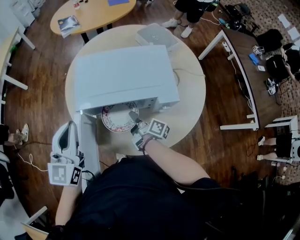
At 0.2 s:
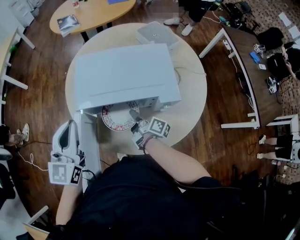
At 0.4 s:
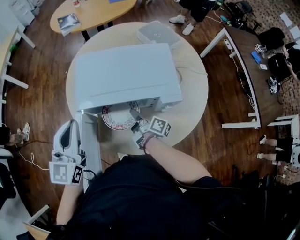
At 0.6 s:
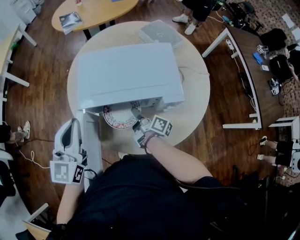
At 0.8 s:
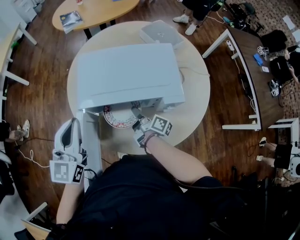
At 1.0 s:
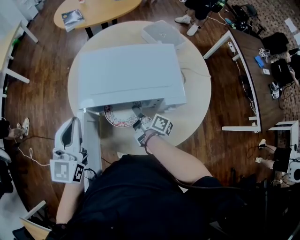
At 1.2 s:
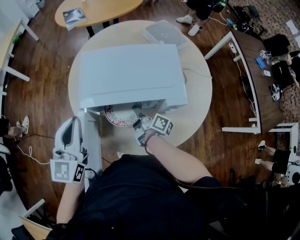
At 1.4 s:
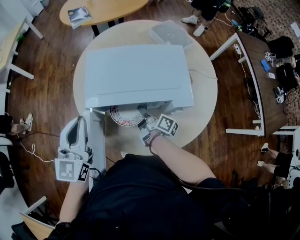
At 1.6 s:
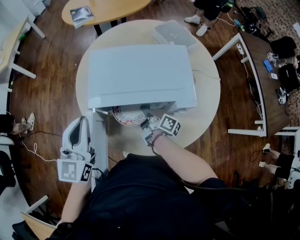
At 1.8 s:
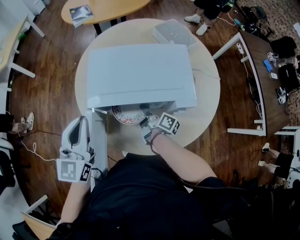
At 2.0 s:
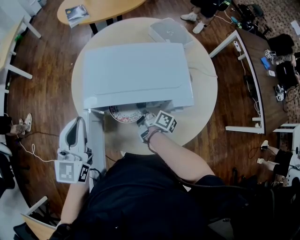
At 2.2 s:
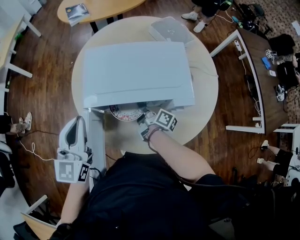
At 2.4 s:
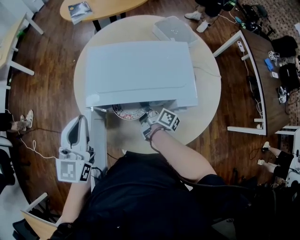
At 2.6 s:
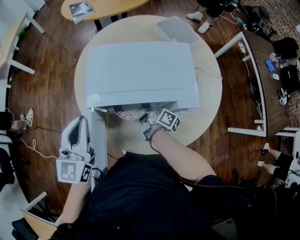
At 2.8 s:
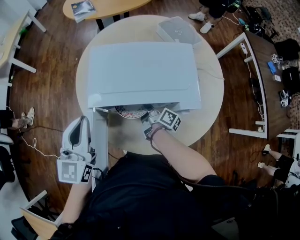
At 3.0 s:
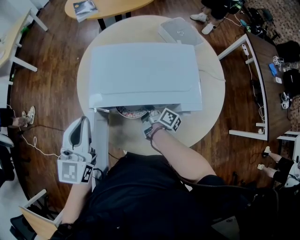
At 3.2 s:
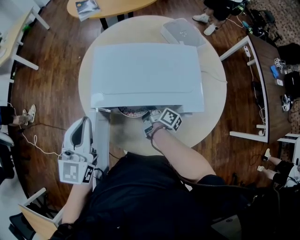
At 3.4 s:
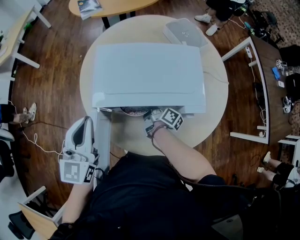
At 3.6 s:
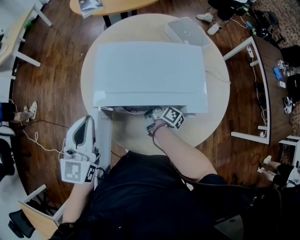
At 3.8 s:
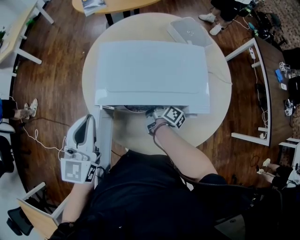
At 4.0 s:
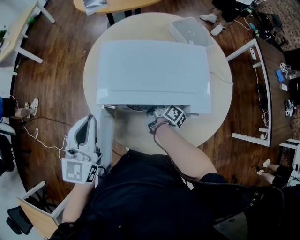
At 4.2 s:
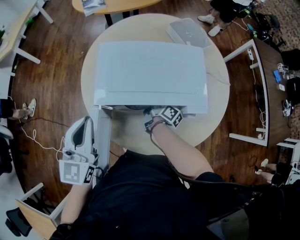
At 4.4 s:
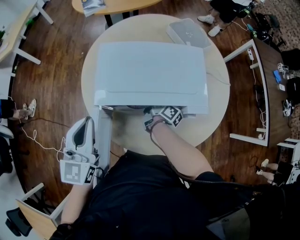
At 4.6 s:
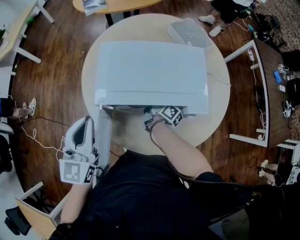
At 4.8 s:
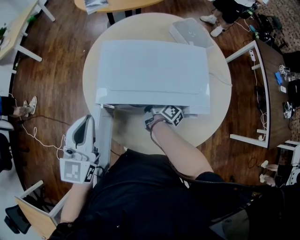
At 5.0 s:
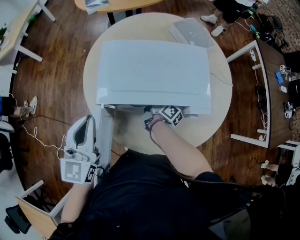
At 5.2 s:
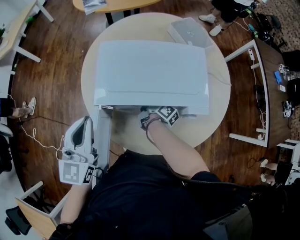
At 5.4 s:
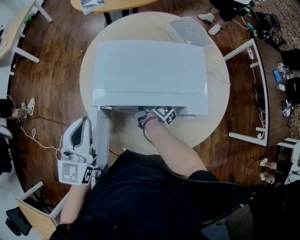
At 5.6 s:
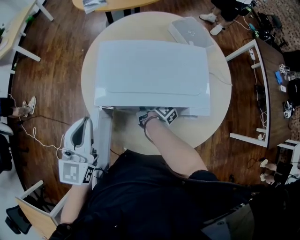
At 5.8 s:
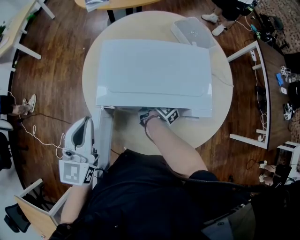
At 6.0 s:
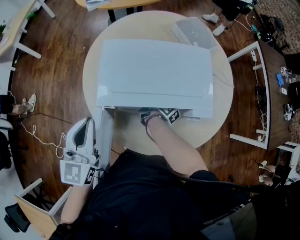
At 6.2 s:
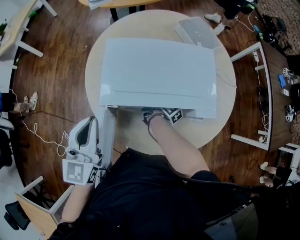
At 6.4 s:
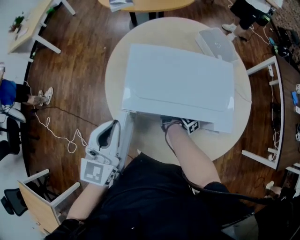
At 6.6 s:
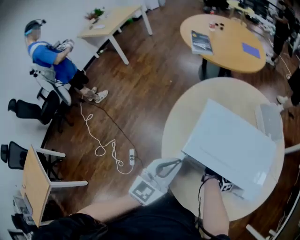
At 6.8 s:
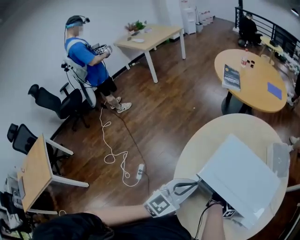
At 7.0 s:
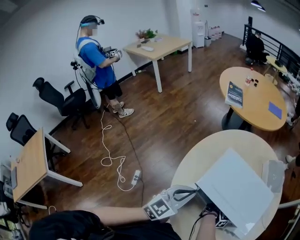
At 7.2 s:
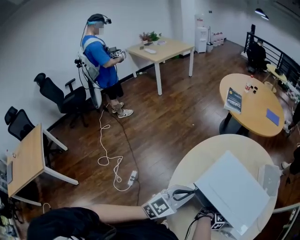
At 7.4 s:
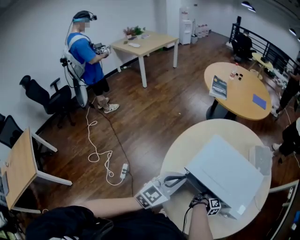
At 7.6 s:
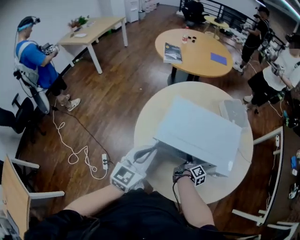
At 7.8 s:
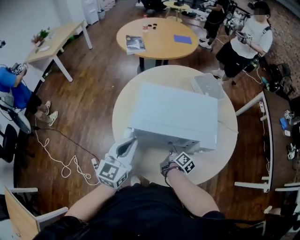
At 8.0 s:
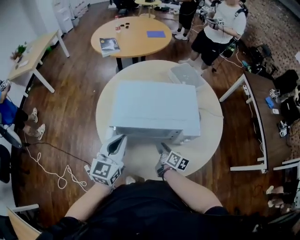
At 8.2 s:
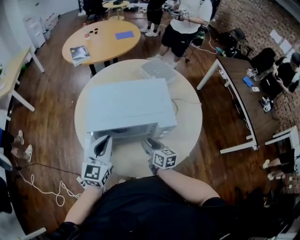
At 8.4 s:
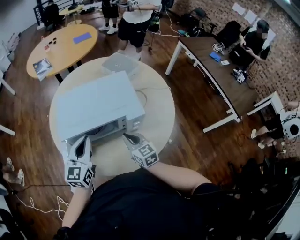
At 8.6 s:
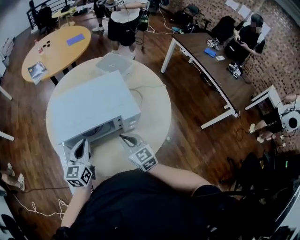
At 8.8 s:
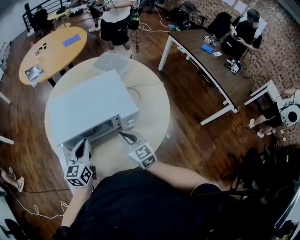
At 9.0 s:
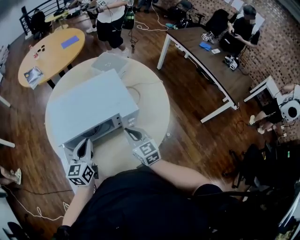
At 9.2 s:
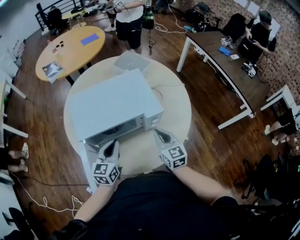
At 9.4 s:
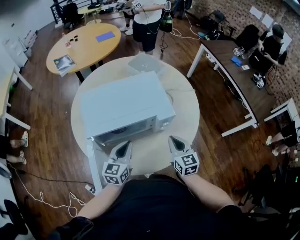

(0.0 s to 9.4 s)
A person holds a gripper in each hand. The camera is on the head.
0.0 s - 1.6 s: The grippers stay close to where they were, moving slightly.
1.6 s - 3.2 s: The grippers stay close to where they were, moving slightly.
3.2 s - 4.8 s: The grippers move only a little.
4.8 s - 6.2 s: The grippers move only a little.
6.2 s - 7.8 s: The right gripper moves backward, about 10 cm, and opens. The left gripper travels to the right by about 5 cm.
7.8 s - 9.4 s: The left gripper travels to the right and downward by some 15 cm, and rotates some 20 degrees; the right gripper goes some 20 cm to the right, upward and backward, twists approximately 60 degrees counterclockwise, seen from behind, and closes up.

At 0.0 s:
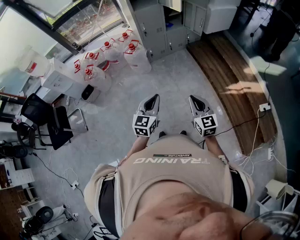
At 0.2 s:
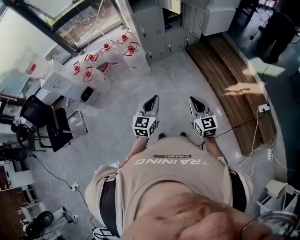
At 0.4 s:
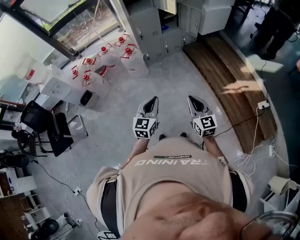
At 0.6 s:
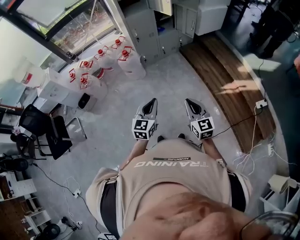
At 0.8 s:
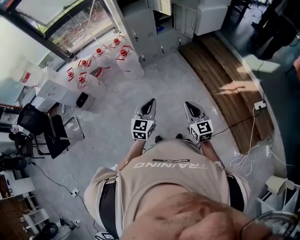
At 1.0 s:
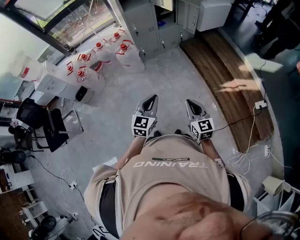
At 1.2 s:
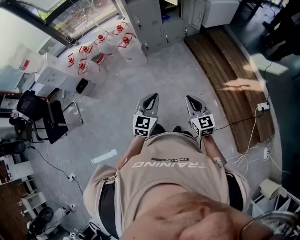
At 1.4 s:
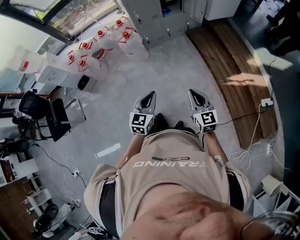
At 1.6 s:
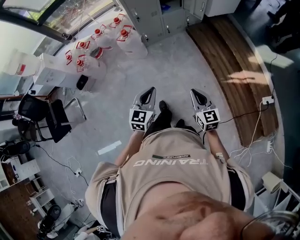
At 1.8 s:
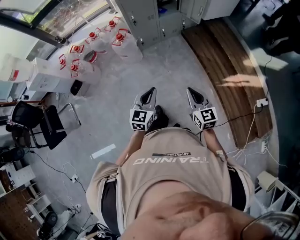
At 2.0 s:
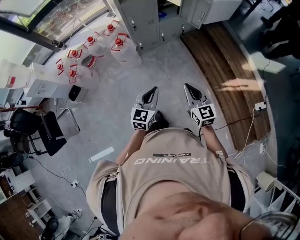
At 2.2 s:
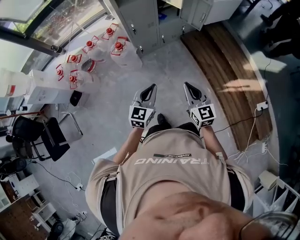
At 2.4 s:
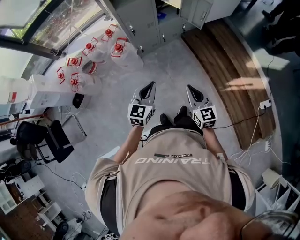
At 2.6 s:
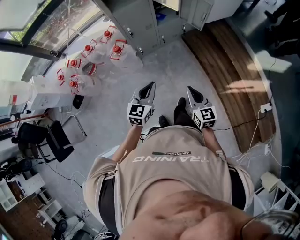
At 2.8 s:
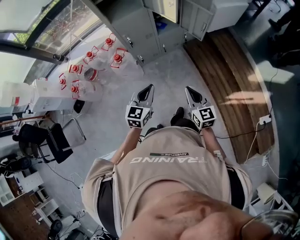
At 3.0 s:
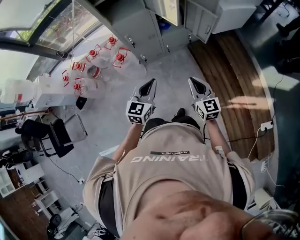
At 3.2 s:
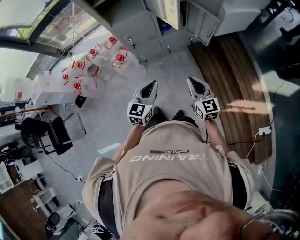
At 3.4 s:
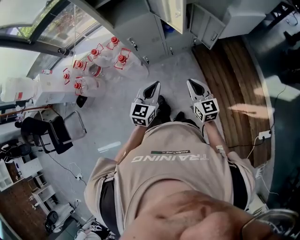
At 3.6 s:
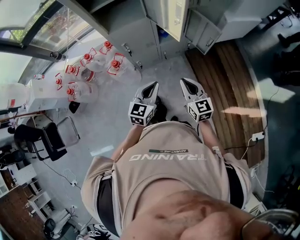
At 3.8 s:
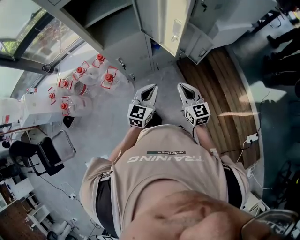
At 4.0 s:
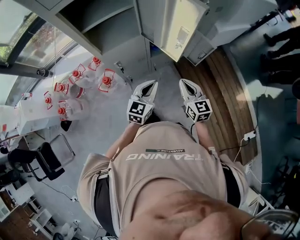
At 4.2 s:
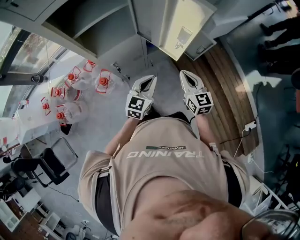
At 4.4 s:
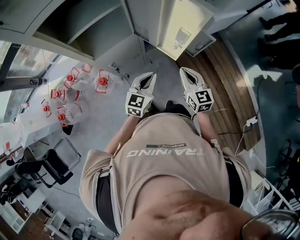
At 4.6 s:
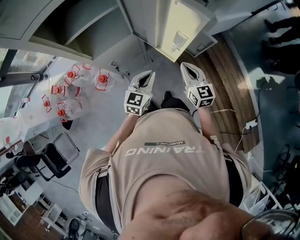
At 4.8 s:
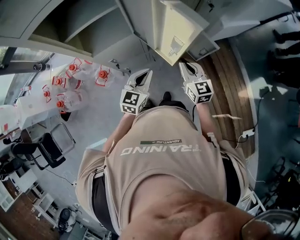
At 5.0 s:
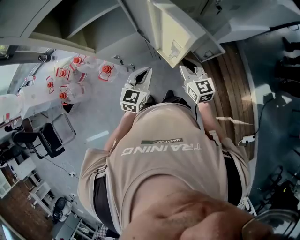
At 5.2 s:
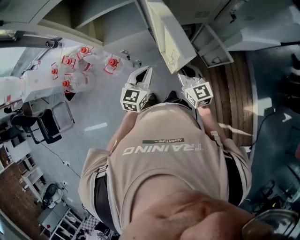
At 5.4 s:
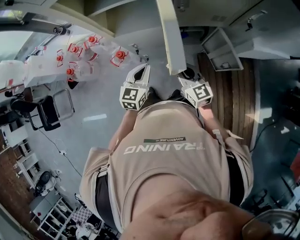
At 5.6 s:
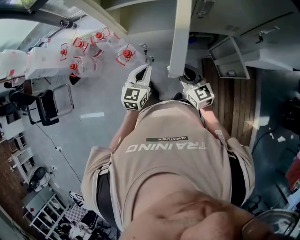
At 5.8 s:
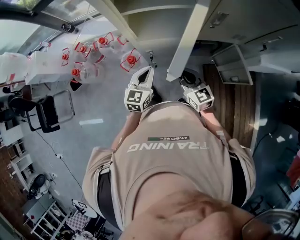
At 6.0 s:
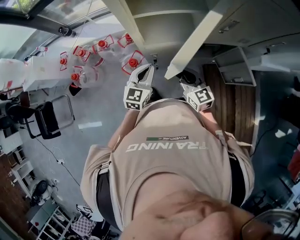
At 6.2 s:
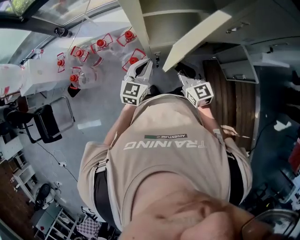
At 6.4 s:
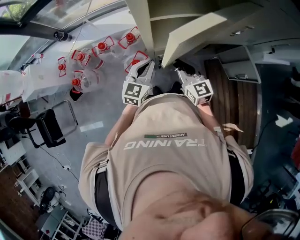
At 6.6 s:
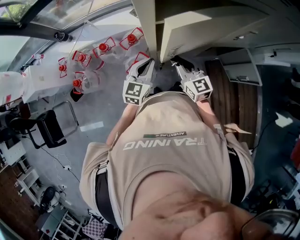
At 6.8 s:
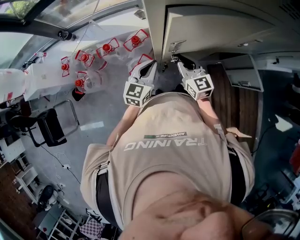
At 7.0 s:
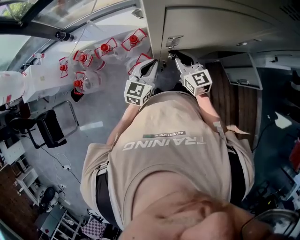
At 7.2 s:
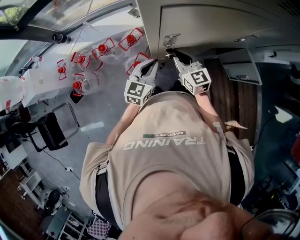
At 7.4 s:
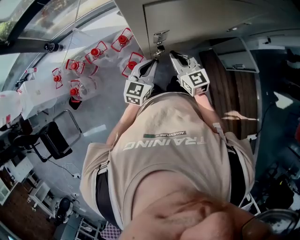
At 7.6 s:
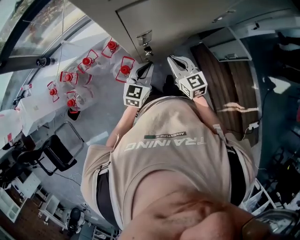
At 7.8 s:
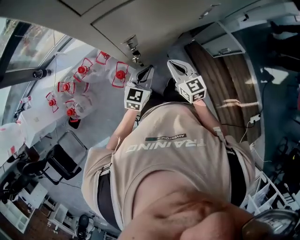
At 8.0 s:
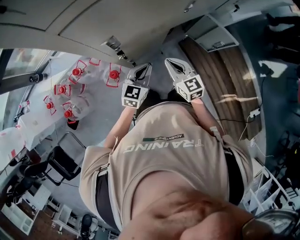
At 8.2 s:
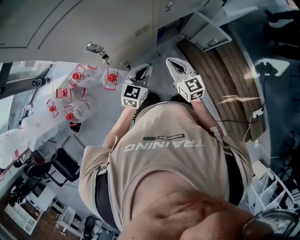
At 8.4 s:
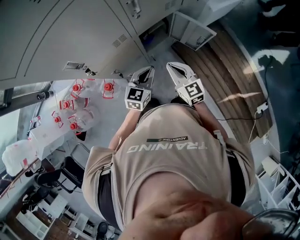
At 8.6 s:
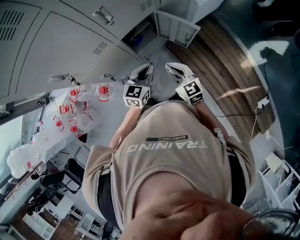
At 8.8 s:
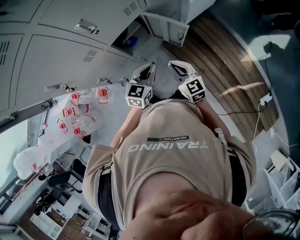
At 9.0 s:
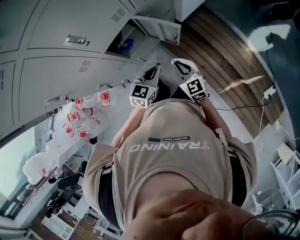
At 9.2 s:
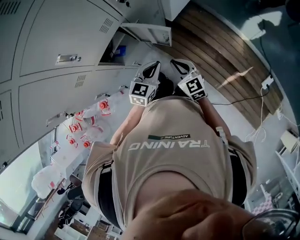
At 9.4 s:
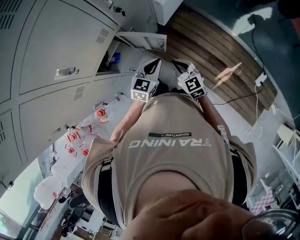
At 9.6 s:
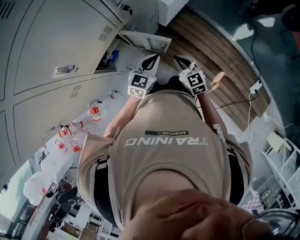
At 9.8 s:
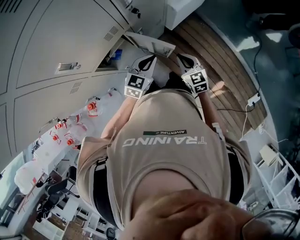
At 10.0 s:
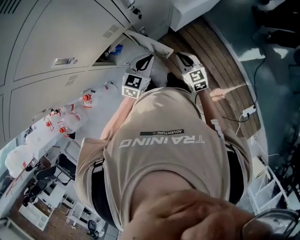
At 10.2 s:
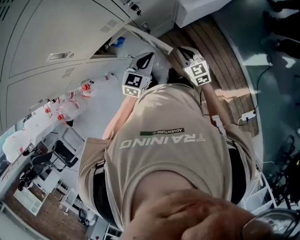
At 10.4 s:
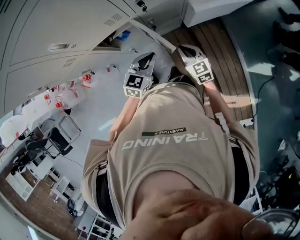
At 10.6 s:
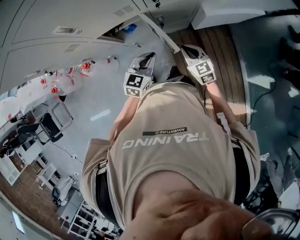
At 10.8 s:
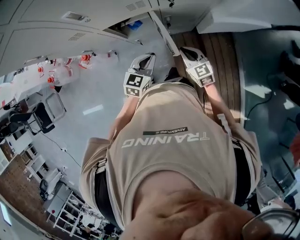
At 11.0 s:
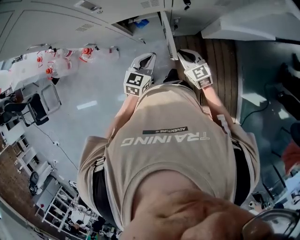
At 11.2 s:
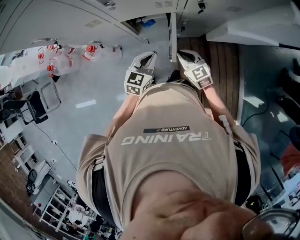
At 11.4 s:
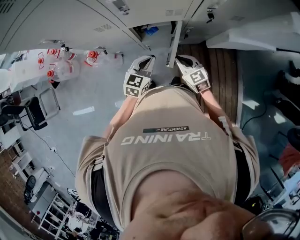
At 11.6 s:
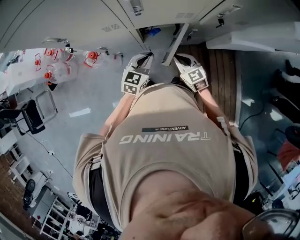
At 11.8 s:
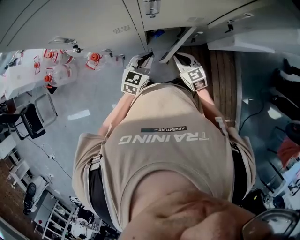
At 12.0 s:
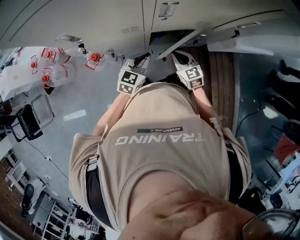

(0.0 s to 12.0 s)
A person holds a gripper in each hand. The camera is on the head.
0.0 s - 1.6 s: The left gripper heads forward, covering about 10 cm; the right gripper is displaced forward, downward and to the right by approximately 10 cm.
1.6 s - 3.0 s: Both grippers move forward, roughly 35 cm.
3.0 s - 4.4 s: The grippers both shift forward by roughly 25 cm.
4.4 s - 6.0 s: The left gripper shifts by some 20 cm, and turns by approximately 30 degrees; the right gripper changes place by some 25 cm, and swivels approximately 30 degrees.
6.0 s - 7.6 s: The right gripper travels forward by about 5 cm; the left gripper swivels about 20 degrees.
7.6 s - 9.0 s: Both grippers are carried to the right, about 40 cm. The right gripper turns by some 20 degrees, while the left gripper changes its angle by roughly 20 degrees.
9.0 s - 10.4 s: The left gripper ends up approximately 15 cm from where it was; the right gripper moves about 25 cm, and rotates approximately 20 degrees.
10.4 s - 12.0 s: Both grippers travel together to the left, approximately 30 cm.

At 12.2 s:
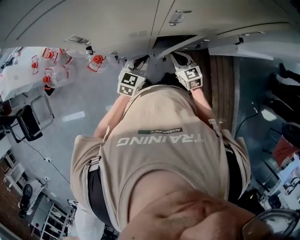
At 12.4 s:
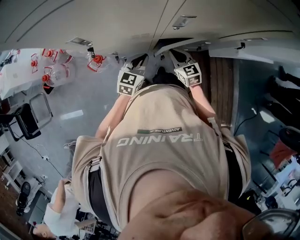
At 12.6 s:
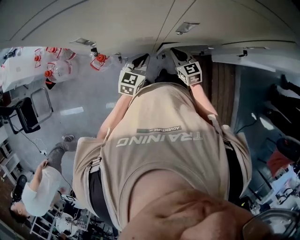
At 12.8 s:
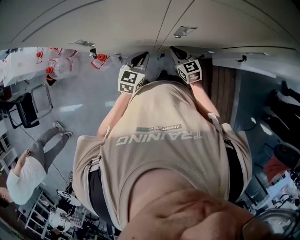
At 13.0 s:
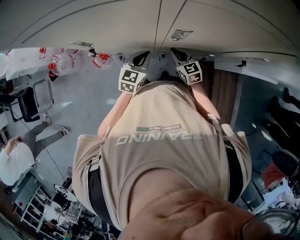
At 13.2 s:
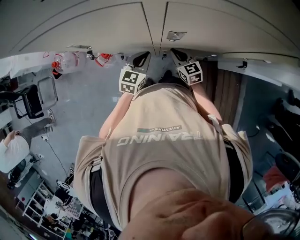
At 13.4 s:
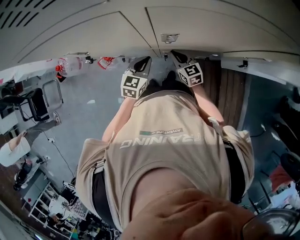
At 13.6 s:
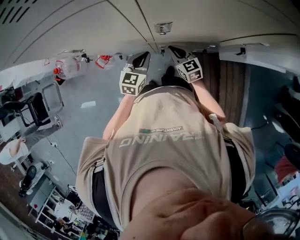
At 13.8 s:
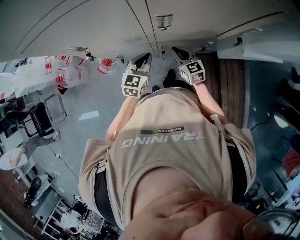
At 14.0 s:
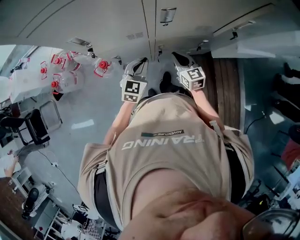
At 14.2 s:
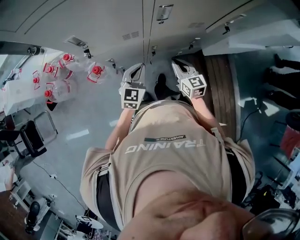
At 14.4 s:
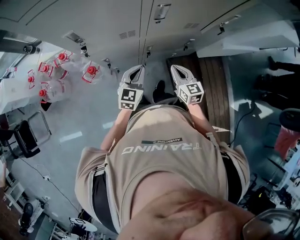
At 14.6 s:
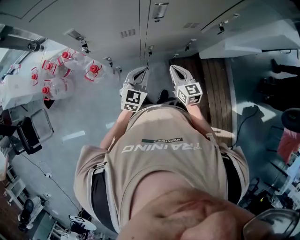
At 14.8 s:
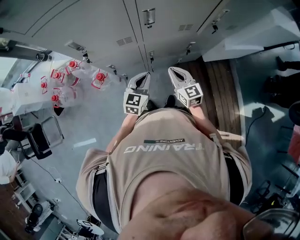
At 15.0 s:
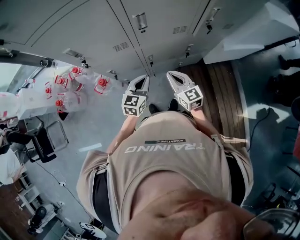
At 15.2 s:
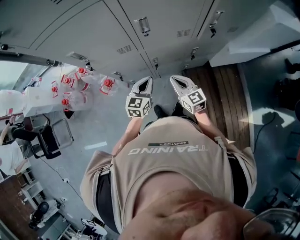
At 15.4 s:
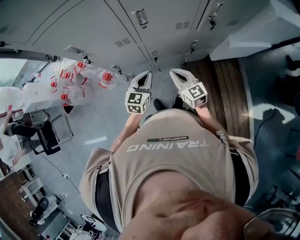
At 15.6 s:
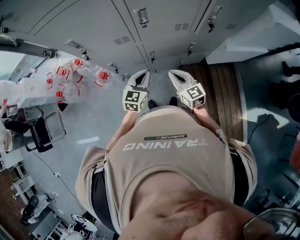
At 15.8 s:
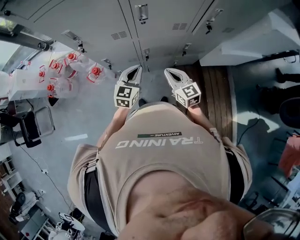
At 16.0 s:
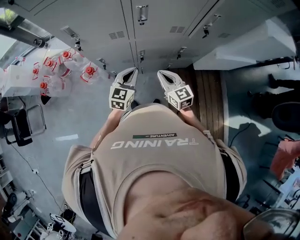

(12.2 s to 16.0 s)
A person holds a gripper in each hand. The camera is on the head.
12.2 s - 13.4 s: The grippers both shift forward by approximately 5 cm.
13.4 s - 14.8 s: The left gripper travels backward by some 15 cm, while the right gripper goes approximately 20 cm backward and upward, and turns by about 20 degrees.
14.8 s - 16.0 s: There are only small adjustments of the grippers.
